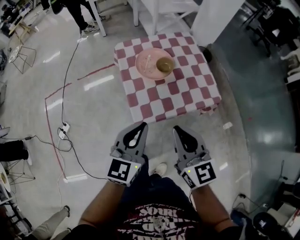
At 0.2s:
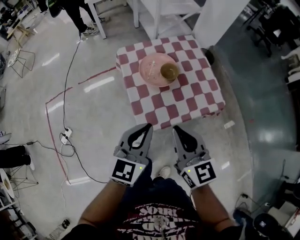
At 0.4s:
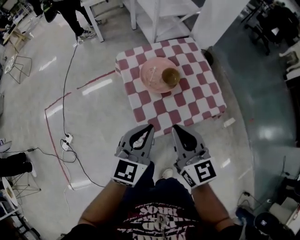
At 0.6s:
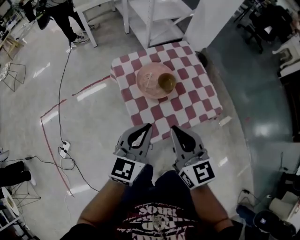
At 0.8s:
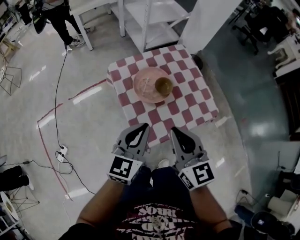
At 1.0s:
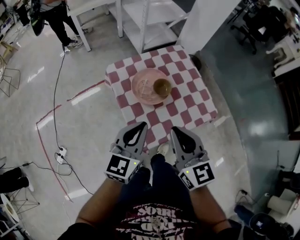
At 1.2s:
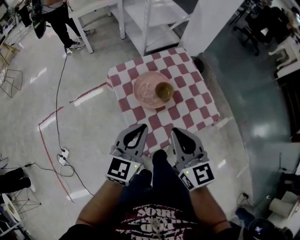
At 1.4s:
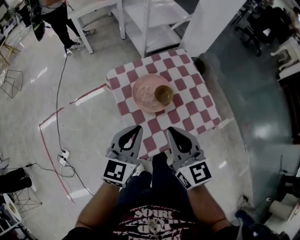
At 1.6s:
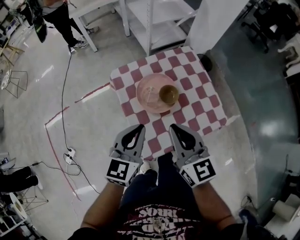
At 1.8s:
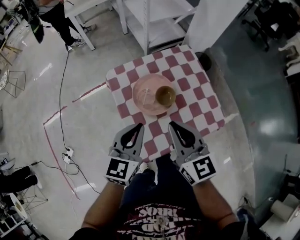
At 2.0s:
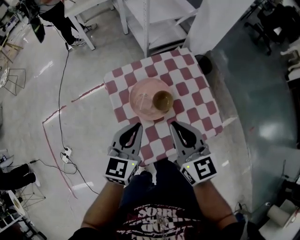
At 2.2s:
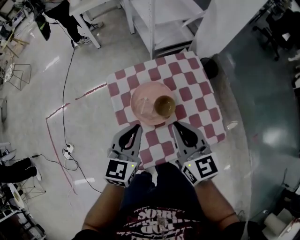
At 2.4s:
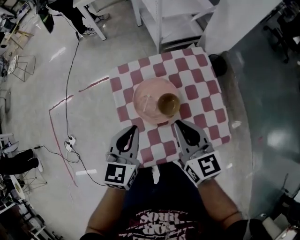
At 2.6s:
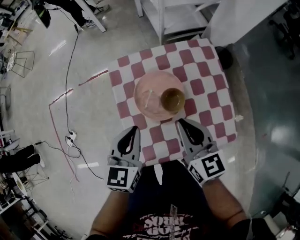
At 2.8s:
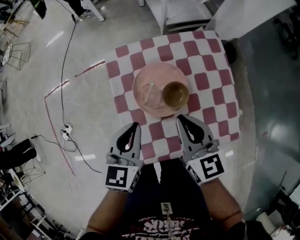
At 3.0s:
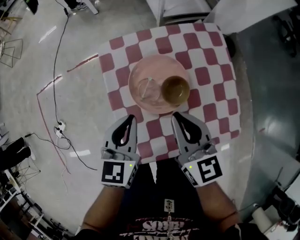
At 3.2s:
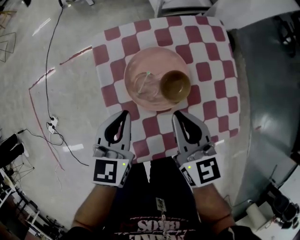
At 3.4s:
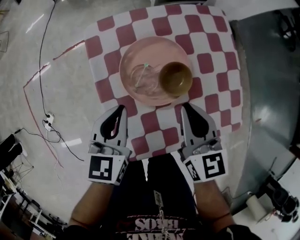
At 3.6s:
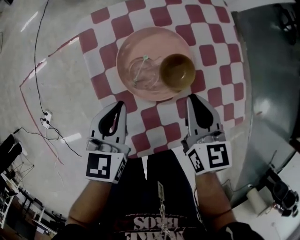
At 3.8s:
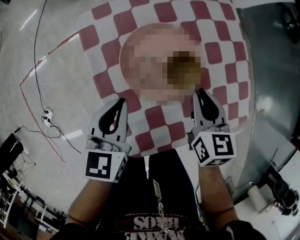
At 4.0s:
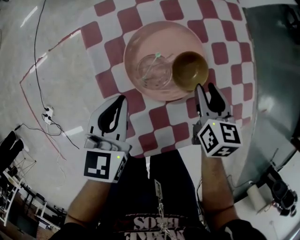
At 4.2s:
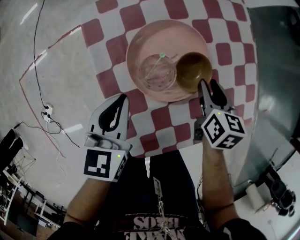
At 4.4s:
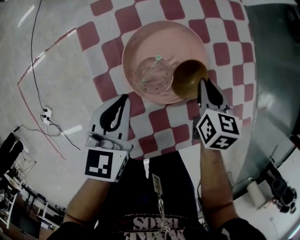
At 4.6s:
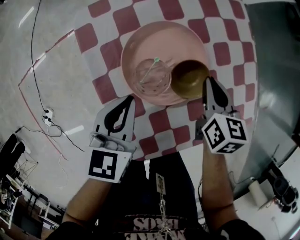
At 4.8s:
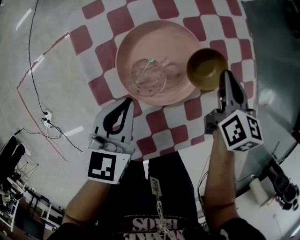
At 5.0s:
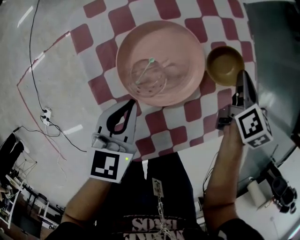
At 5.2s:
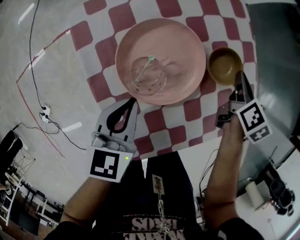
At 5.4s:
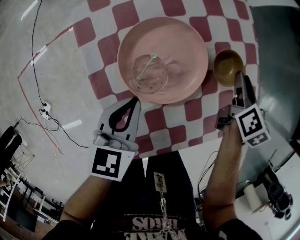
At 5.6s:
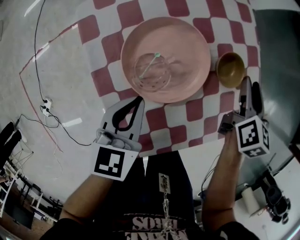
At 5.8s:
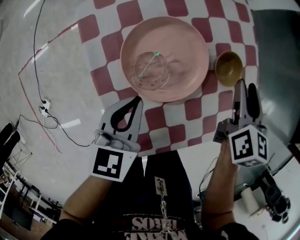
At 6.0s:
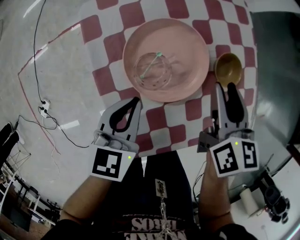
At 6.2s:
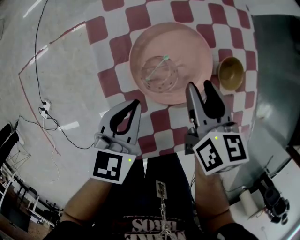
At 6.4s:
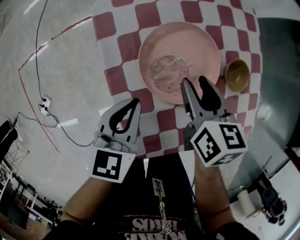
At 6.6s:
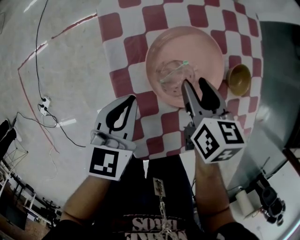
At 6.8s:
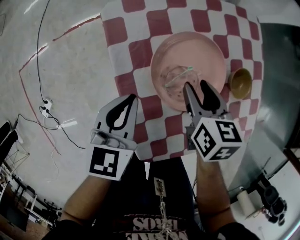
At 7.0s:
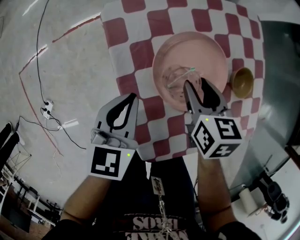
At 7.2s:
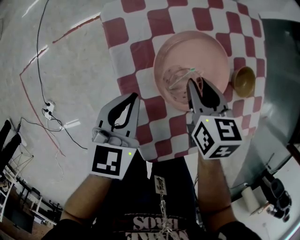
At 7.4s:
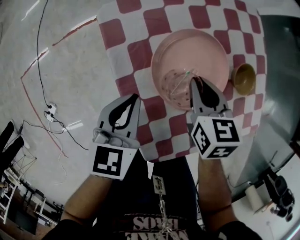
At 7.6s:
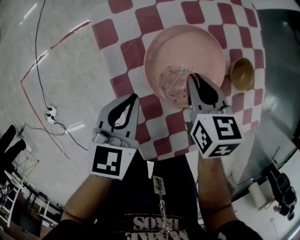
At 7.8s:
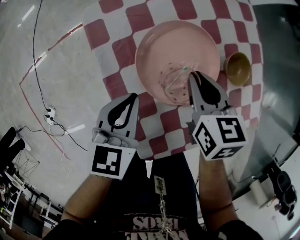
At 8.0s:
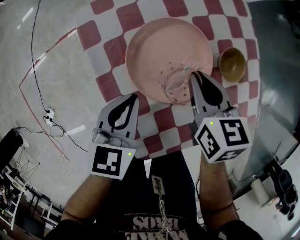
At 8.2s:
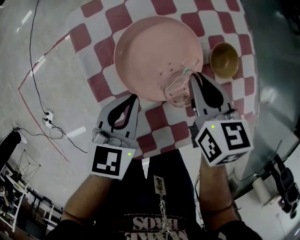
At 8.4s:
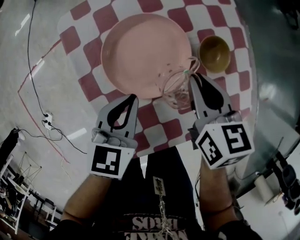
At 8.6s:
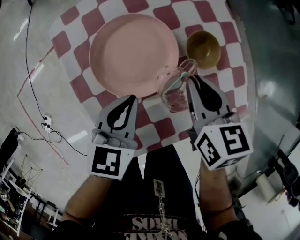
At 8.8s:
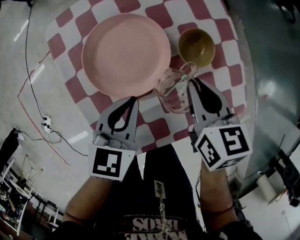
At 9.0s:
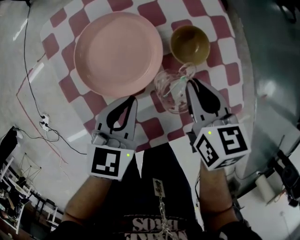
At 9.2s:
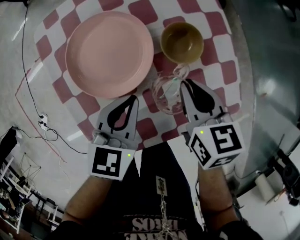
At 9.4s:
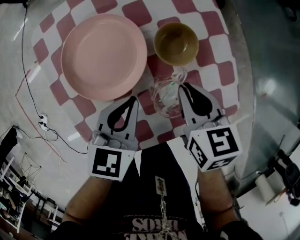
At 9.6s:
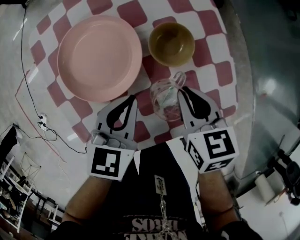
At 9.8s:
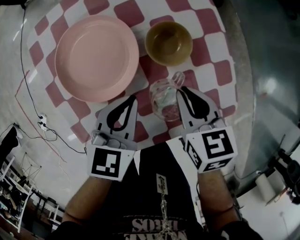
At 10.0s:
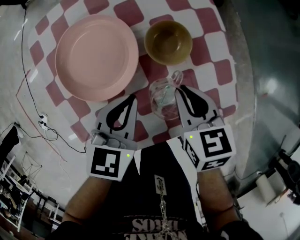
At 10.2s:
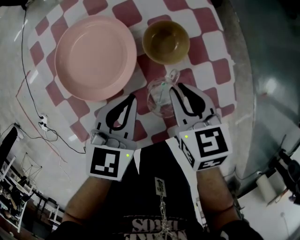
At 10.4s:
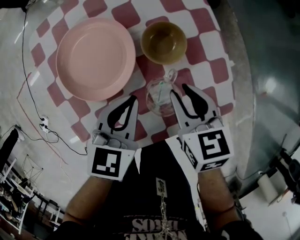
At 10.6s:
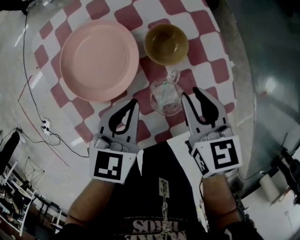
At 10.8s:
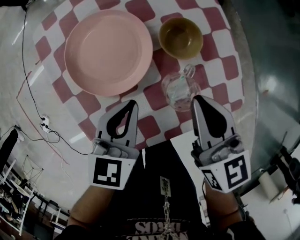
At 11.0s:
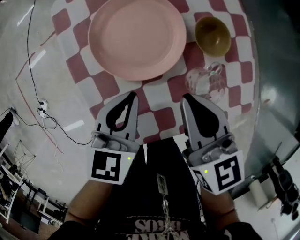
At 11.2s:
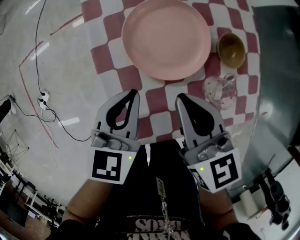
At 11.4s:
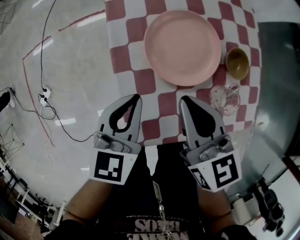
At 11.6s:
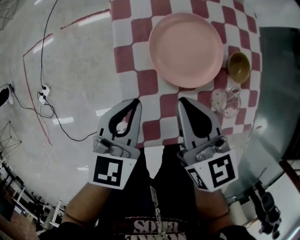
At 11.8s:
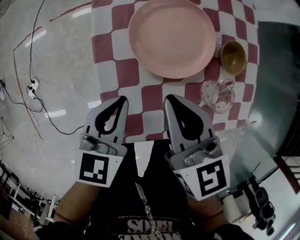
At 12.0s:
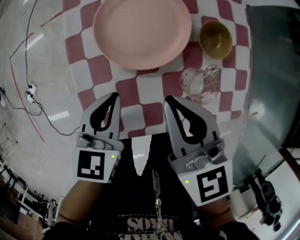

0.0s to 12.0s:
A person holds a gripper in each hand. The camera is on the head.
0.0s to 1.6s: Both grippers move forward, roughly 20 cm.
1.6s to 3.0s: Both grippers travel together downward and forward, roughly 15 cm. The left gripper swivels about 20 degrees.
3.0s to 4.4s: The left gripper goes roughly 10 cm downward. The right gripper shifts about 20 cm downward and to the right, rotates about 40 degrees, and opens and closes again.
4.4s to 6.0s: The right gripper shifts roughly 10 cm upward, goes to the right and returns, about 10 cm each way, and opens its fingers.
6.0s to 7.6s: The left gripper is displaced to the left by roughly 5 cm. The right gripper travels to the left and downward by some 15 cm, and closes up.
7.6s to 9.0s: The two grippers go approximately 20 cm to the right.
9.0s to 10.4s: The left gripper moves to the right, approximately 5 cm.
10.4s to 12.0s: The right gripper moves to the left and upward, roughly 20 cm, turns by roughly 30 degrees, and closes. Meanwhile the left gripper heads to the left, covering about 15 cm.

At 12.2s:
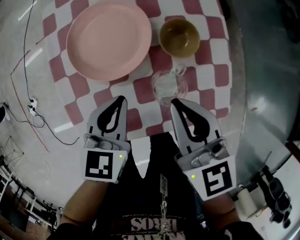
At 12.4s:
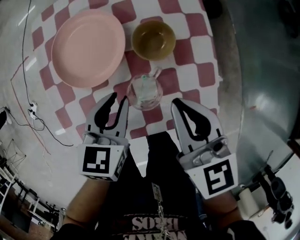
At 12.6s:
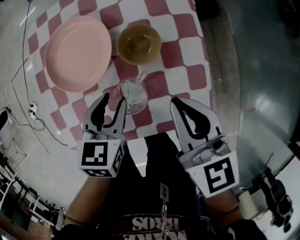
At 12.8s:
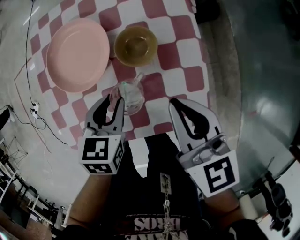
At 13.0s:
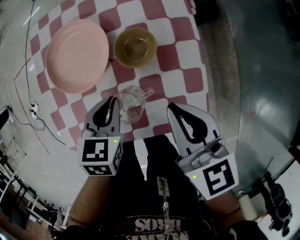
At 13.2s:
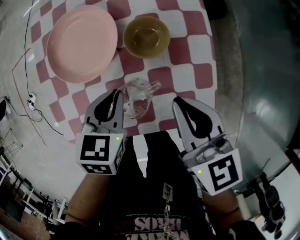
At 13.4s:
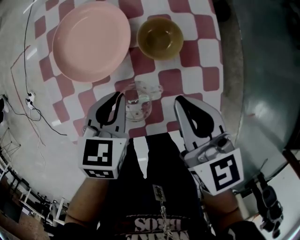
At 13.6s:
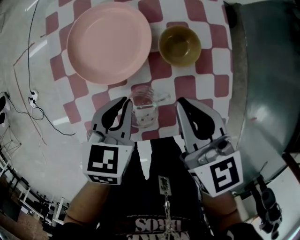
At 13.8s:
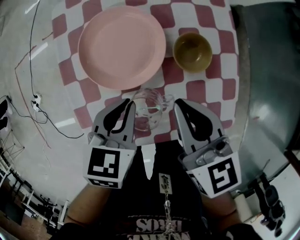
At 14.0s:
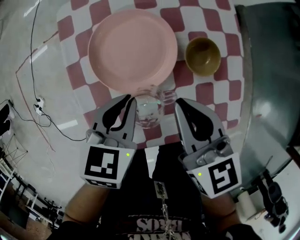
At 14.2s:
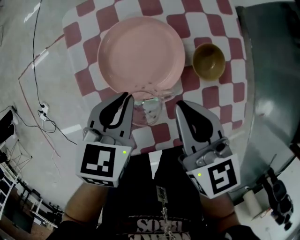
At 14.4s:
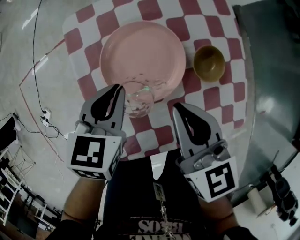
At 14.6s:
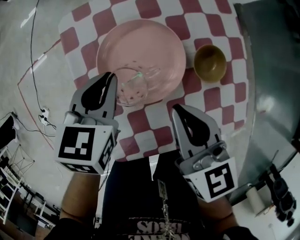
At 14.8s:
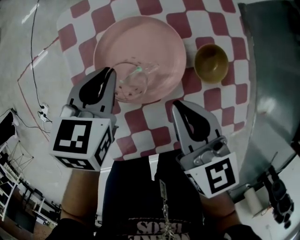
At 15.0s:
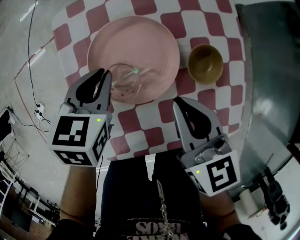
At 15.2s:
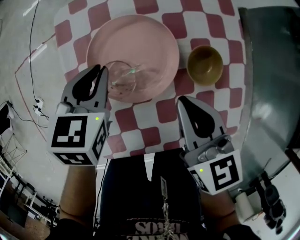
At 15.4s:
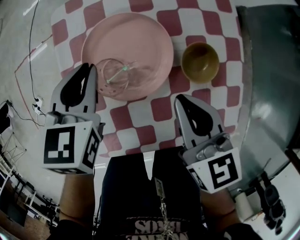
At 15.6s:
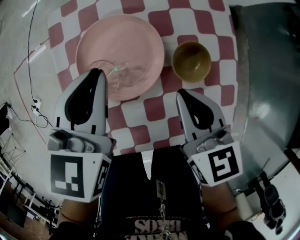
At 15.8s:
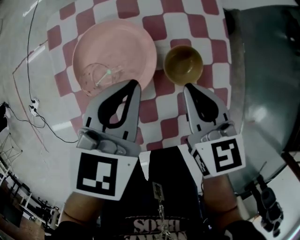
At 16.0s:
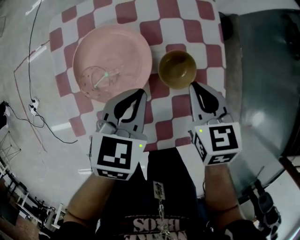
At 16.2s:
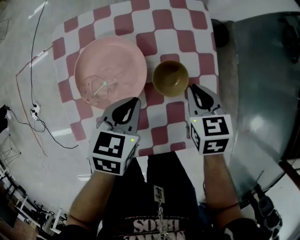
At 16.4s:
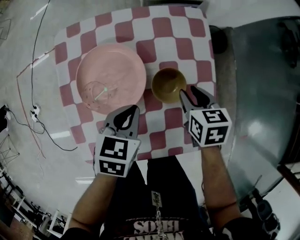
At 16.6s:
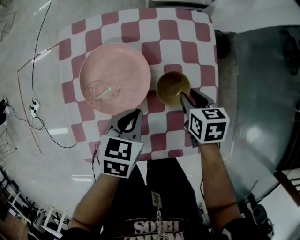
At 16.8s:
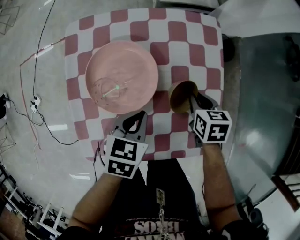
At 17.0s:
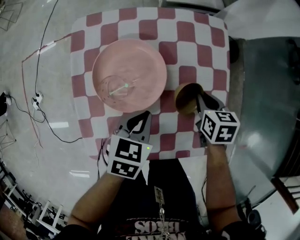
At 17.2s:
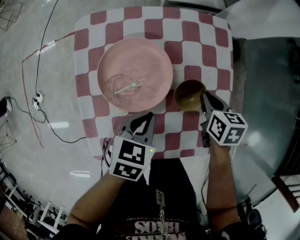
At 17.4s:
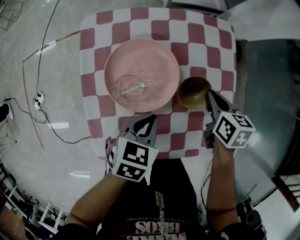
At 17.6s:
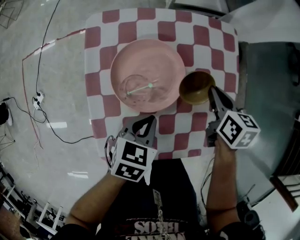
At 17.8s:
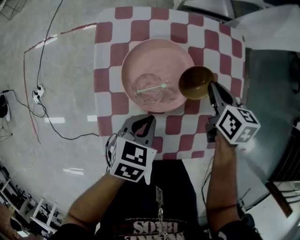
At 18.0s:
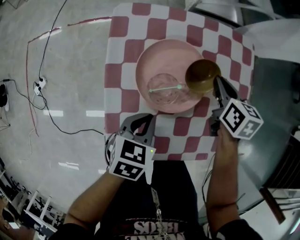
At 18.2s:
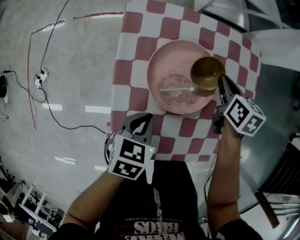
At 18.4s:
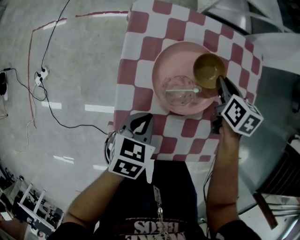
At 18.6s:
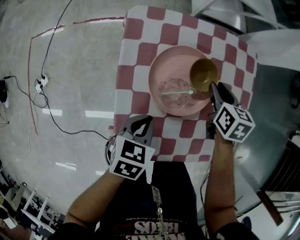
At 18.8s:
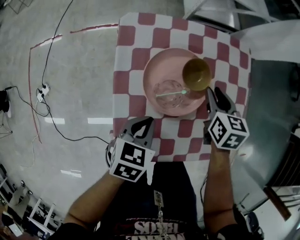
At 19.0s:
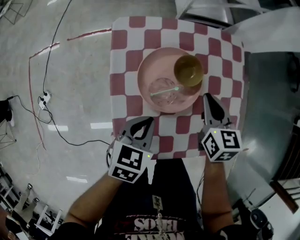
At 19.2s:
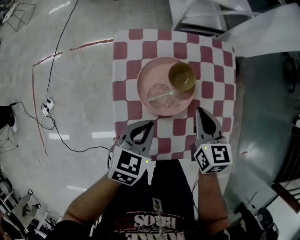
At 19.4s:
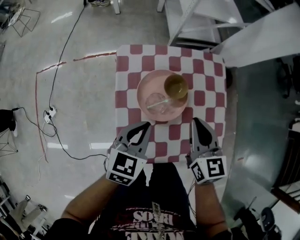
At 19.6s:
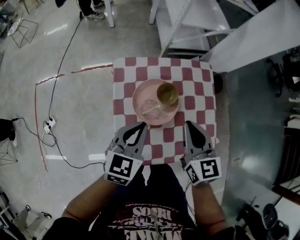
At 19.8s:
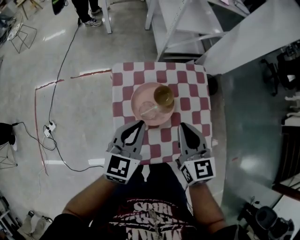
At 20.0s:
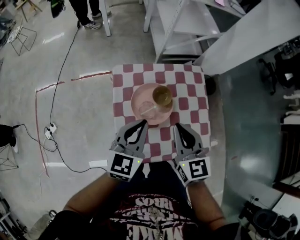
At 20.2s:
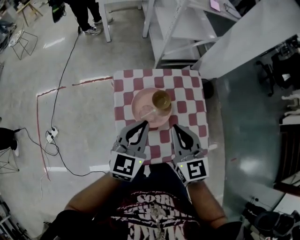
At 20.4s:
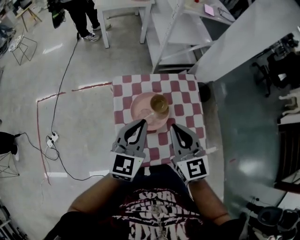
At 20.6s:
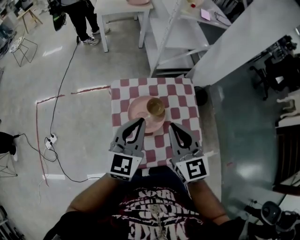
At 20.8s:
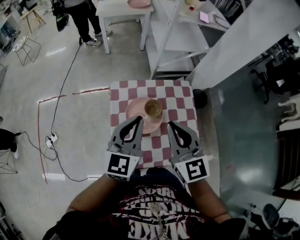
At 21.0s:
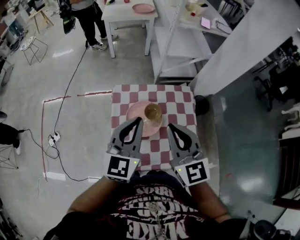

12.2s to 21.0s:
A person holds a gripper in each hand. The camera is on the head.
12.2s to 13.6s: The left gripper reaches roughly 10 cm to the right, then returns, and opens, then closes again. Meanwhile the right gripper travels to the right and back again, approximately 10 cm each way.
13.6s to 15.2s: The right gripper goes roughly 10 cm to the left and forward. Meanwhile the left gripper heads forward and to the left, covering approximately 20 cm.
15.2s to 16.6s: The right gripper goes approximately 20 cm to the right and downward, swivels approximately 30 degrees, and opens up. Meanwhile the left gripper heads to the right and backward, covering roughly 20 cm.
16.6s to 18.0s: The left gripper heads to the left and backward, covering roughly 15 cm, while the right gripper goes some 15 cm to the left and forward, and closes its fingers.
18.0s to 19.6s: The left gripper travels upward by approximately 20 cm, and turns by roughly 30 degrees, while the right gripper is displaced upward and backward by about 25 cm, rotates approximately 30 degrees, and opens, then closes once more.
19.6s to 21.0s: Both grippers travel together upward, approximately 20 cm. The right gripper swivels roughly 20 degrees; the left gripper changes its angle by roughly 20 degrees.

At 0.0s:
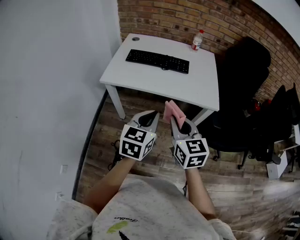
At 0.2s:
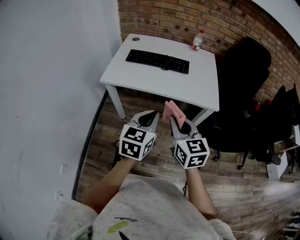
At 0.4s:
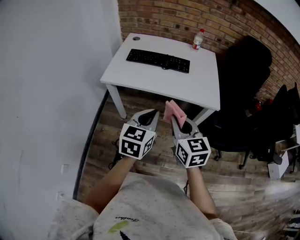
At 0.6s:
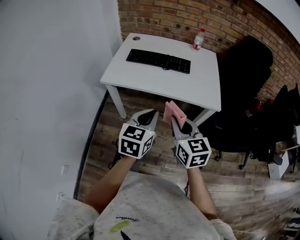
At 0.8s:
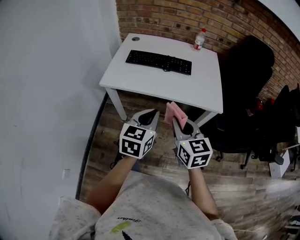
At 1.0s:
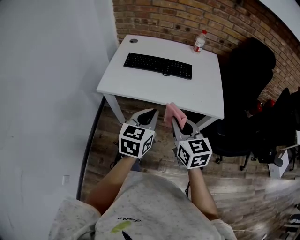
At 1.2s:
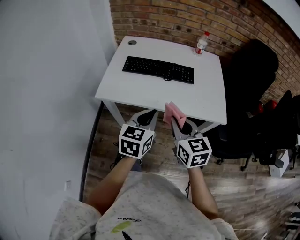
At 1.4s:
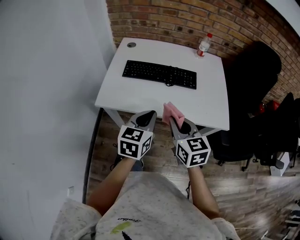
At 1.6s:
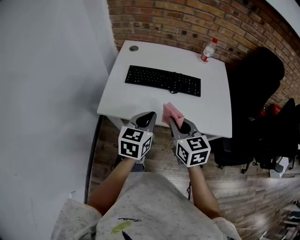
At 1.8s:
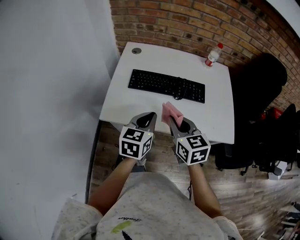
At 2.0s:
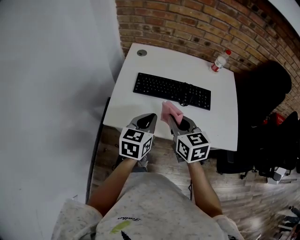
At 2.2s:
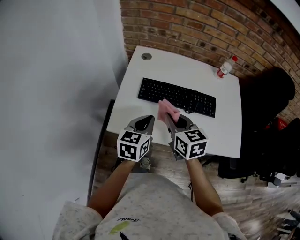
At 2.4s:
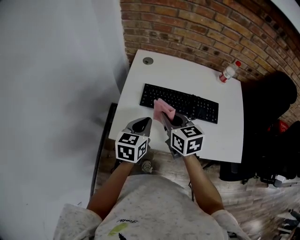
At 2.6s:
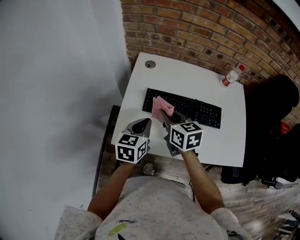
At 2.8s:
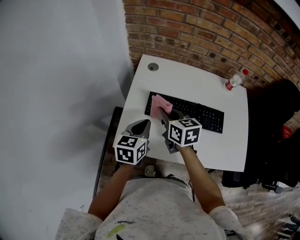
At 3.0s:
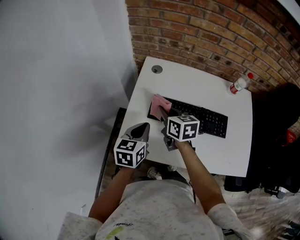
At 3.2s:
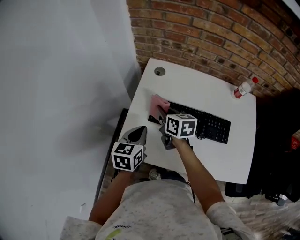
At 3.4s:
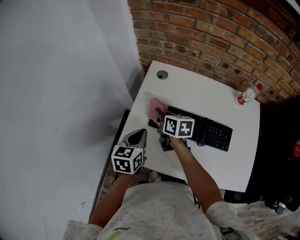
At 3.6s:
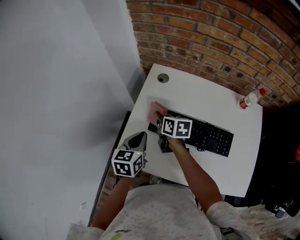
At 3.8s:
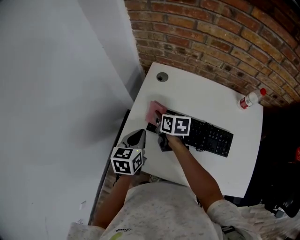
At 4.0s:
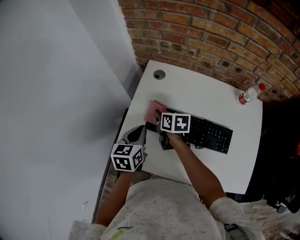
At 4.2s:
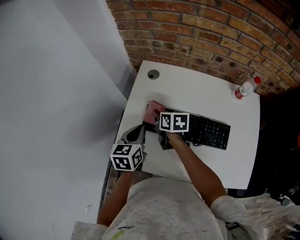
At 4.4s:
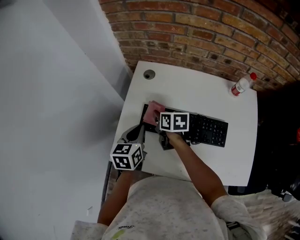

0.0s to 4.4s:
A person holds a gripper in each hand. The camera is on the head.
0.0s to 1.4s: Both grippers travel together forward, some 20 cm.
1.4s to 3.0s: The two grippers go some 35 cm forward and to the left. The right gripper rotates roughly 20 degrees.
3.0s to 4.4s: The right gripper travels downward and forward by approximately 10 cm; the left gripper is displaced forward by some 5 cm.
